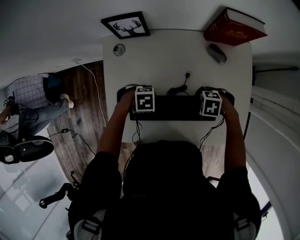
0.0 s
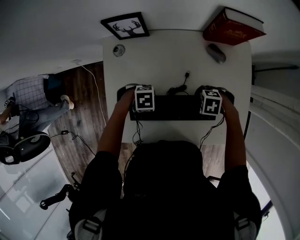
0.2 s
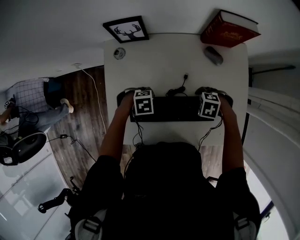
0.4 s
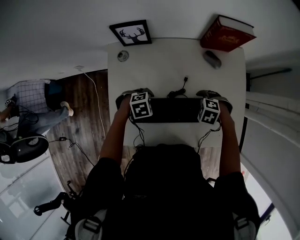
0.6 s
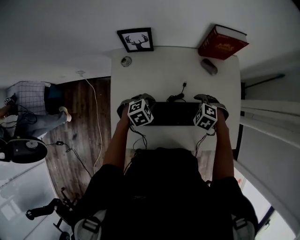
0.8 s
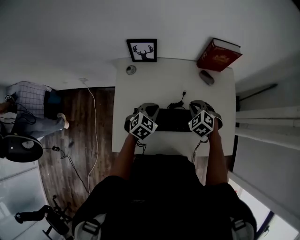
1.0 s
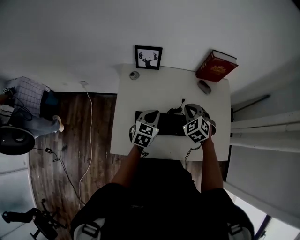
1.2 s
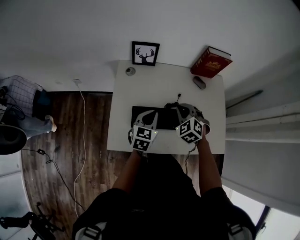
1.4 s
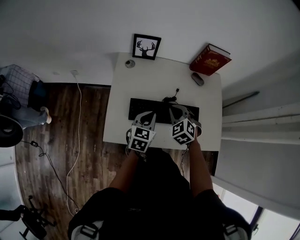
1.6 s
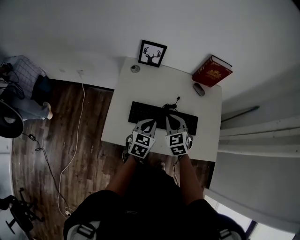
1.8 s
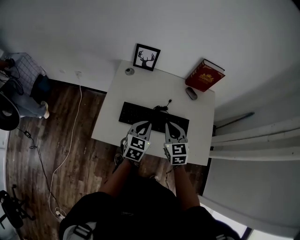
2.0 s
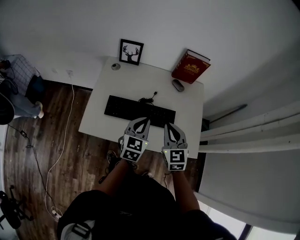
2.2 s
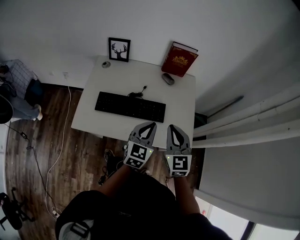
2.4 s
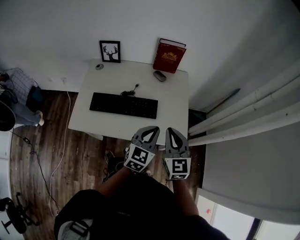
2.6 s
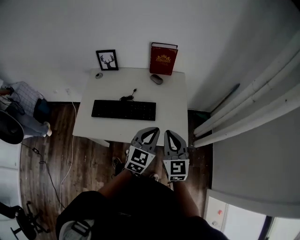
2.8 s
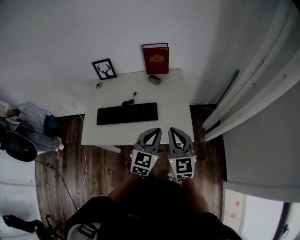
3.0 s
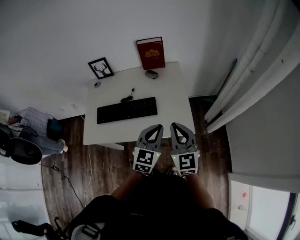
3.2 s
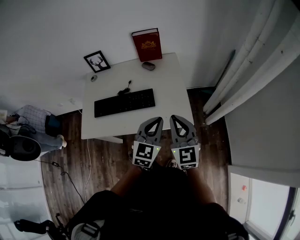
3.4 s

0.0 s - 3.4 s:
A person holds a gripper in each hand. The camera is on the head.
0.0 s - 1.6 s: The grippers both shift upward by about 15 cm. The right gripper changes its angle by approximately 60 degrees, and closes its fingers. Meanwhile the left gripper tips its fingers upward by roughly 40 degrees, and closes up.
1.6 s - 3.4 s: The pair of grippers is taken to the right and backward, roughly 40 cm. The left gripper changes its angle by some 30 degrees. The right gripper is displaced upward by about 15 cm, and angles its fingers upward, by about 40 degrees.

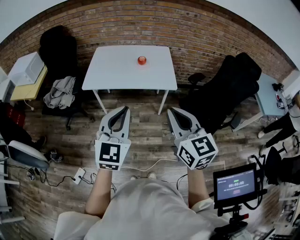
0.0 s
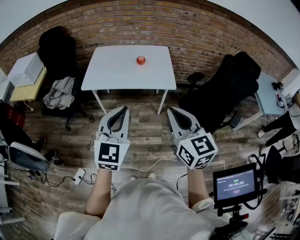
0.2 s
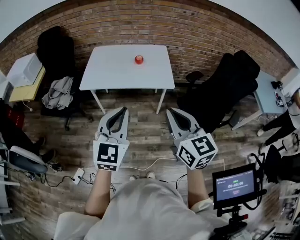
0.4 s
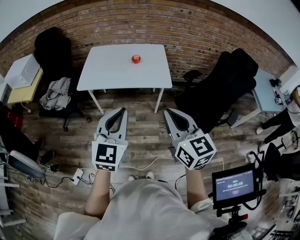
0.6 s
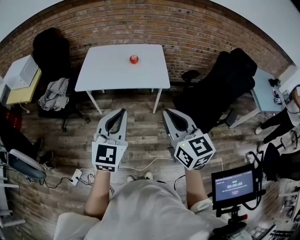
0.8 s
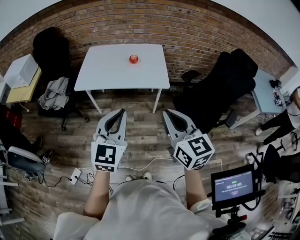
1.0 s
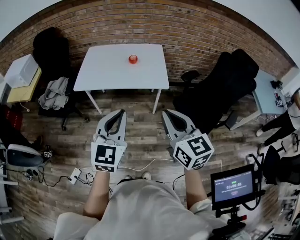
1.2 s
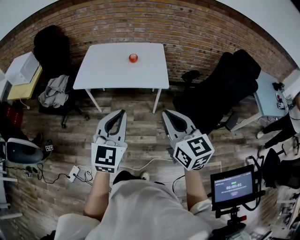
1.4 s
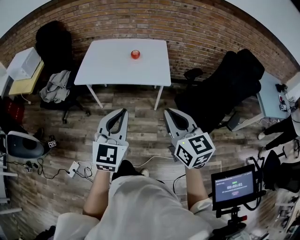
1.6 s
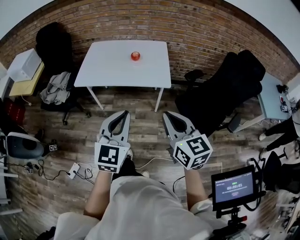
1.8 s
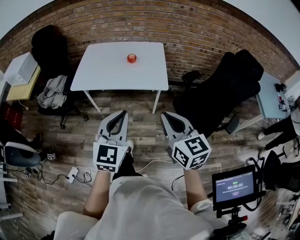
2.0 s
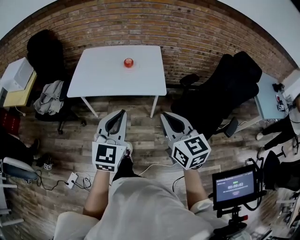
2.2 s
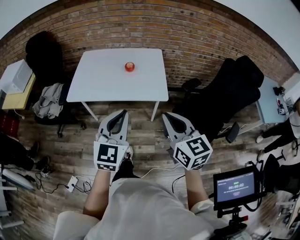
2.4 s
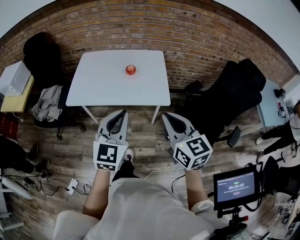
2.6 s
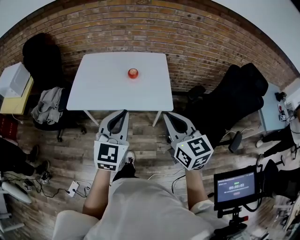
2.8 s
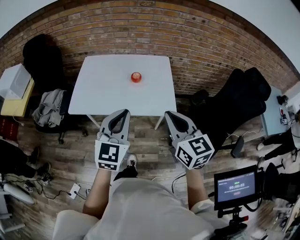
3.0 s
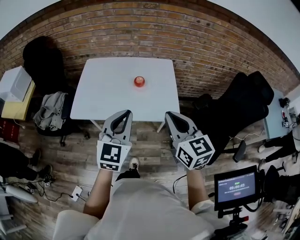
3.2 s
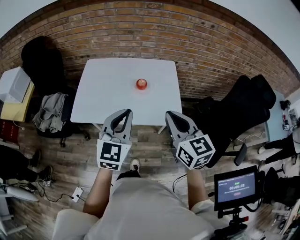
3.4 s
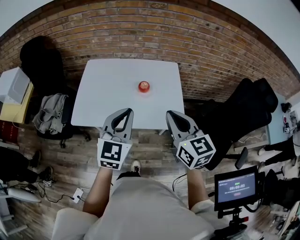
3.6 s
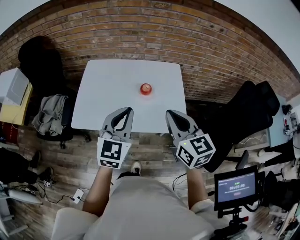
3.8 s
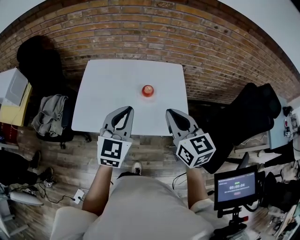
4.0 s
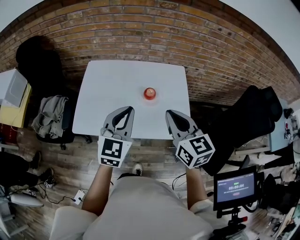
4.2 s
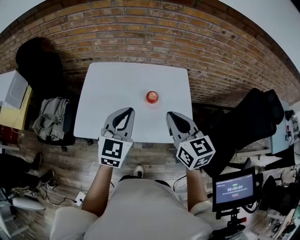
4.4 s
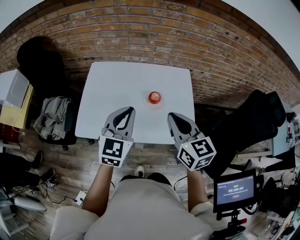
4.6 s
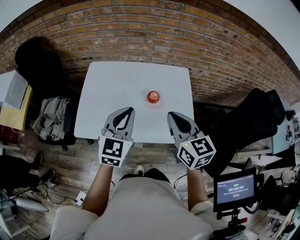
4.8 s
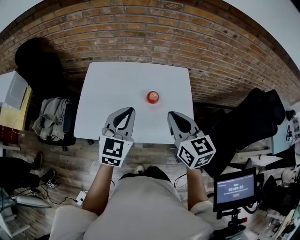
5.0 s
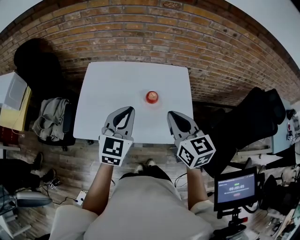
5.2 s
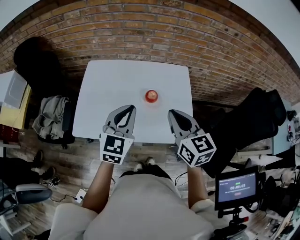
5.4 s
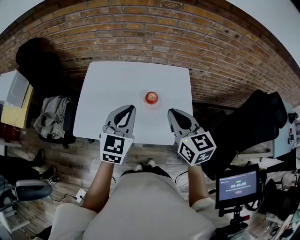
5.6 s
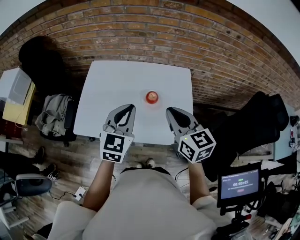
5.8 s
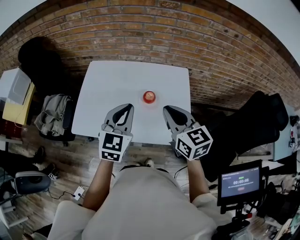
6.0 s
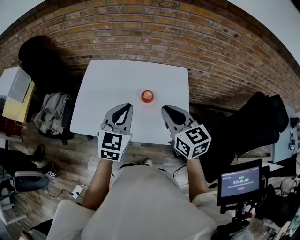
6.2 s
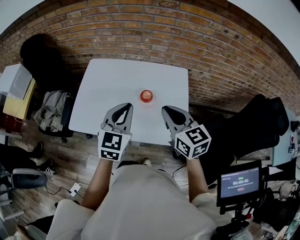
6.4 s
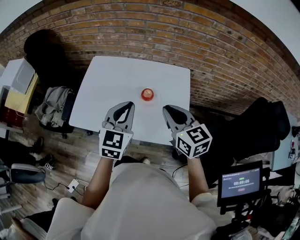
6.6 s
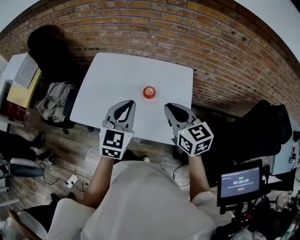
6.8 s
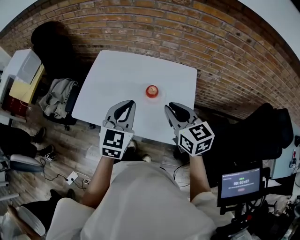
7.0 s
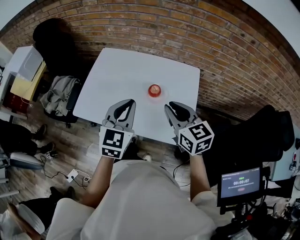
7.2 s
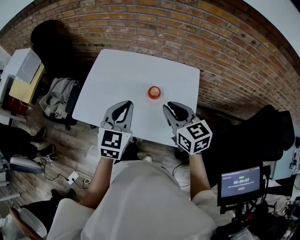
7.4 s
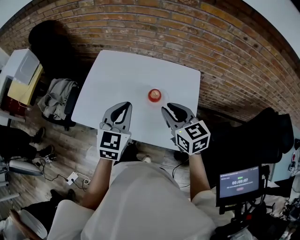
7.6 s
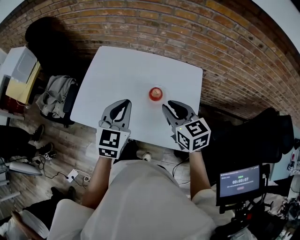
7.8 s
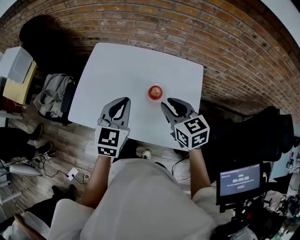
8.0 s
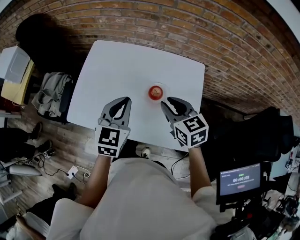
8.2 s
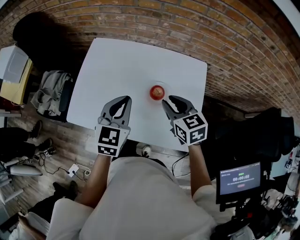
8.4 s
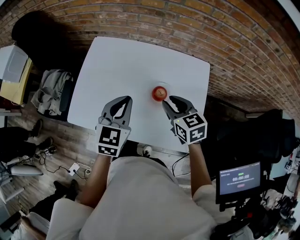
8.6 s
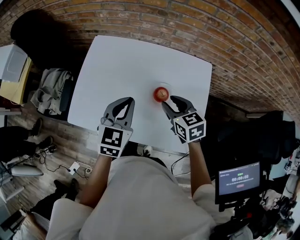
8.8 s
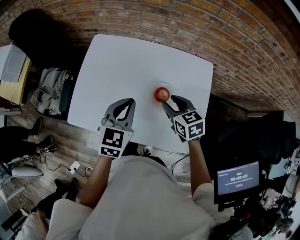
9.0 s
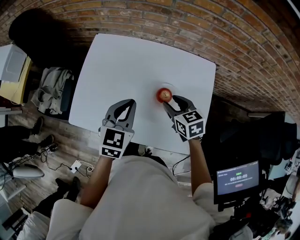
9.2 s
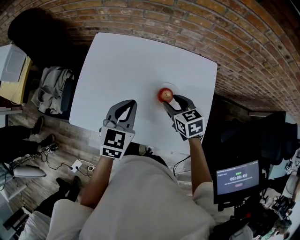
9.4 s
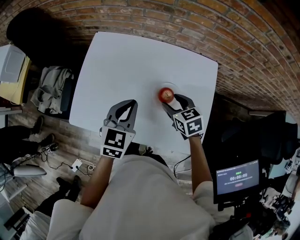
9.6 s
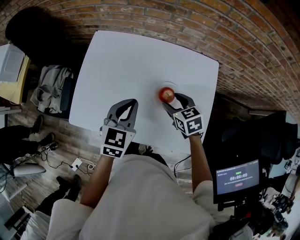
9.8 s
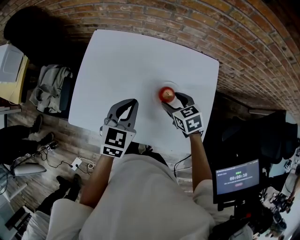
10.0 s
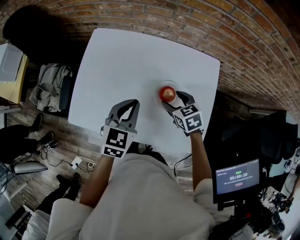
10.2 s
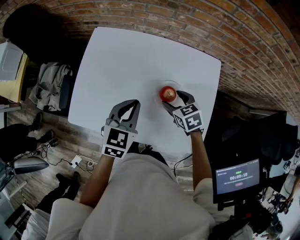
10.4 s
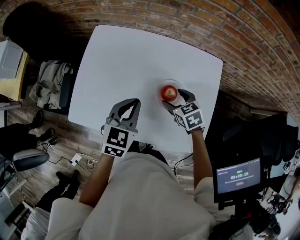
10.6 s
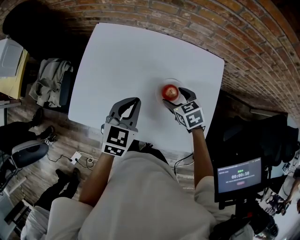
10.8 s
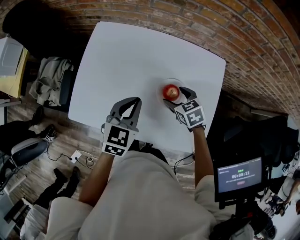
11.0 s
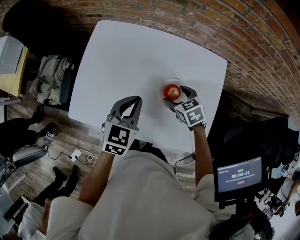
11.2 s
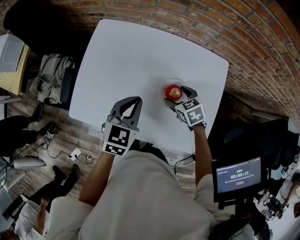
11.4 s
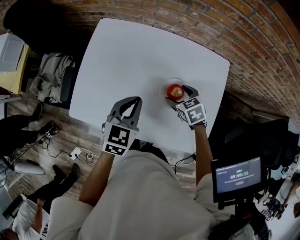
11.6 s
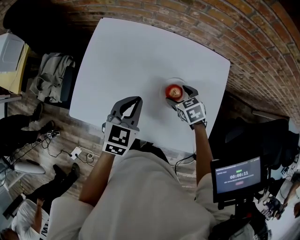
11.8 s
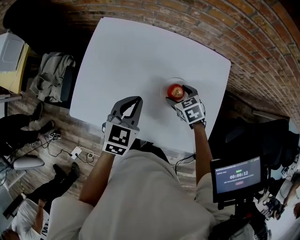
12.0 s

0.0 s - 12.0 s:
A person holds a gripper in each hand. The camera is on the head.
0.0 s - 1.6 s: The two grippers go about 10 cm to the right.
1.6 s - 3.0 s: Both grippers travel together forward, approximately 25 cm.
3.0 s - 4.4 s: The two grippers go roughly 20 cm forward.
4.4 s - 6.0 s: The right gripper heads forward, covering roughly 5 cm. Meanwhile the left gripper ends up approximately 5 cm from where it was.
6.0 s - 7.6 s: The right gripper shifts approximately 5 cm downward.
7.6 s - 9.0 s: The right gripper goes some 15 cm downward and forward; the left gripper is displaced forward and downward by approximately 10 cm.
9.0 s - 10.4 s: The right gripper is displaced downward by some 5 cm, and opens.
10.4 s - 12.0 s: The right gripper travels downward by approximately 5 cm.

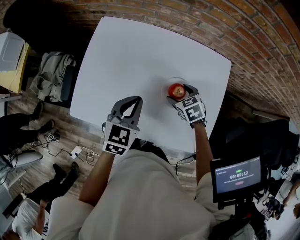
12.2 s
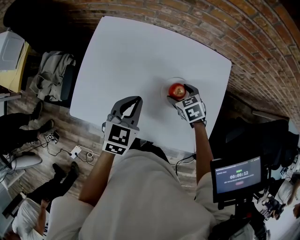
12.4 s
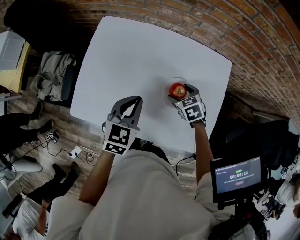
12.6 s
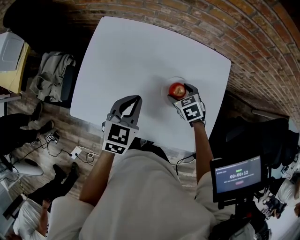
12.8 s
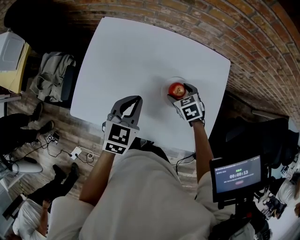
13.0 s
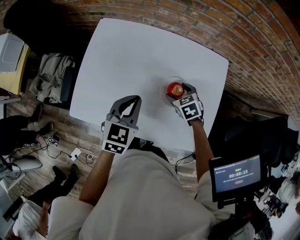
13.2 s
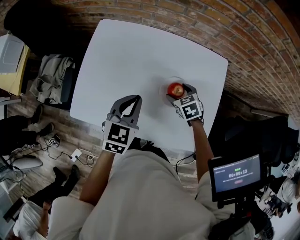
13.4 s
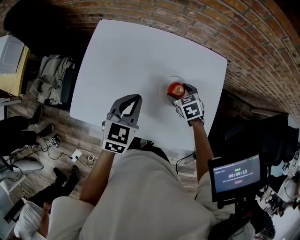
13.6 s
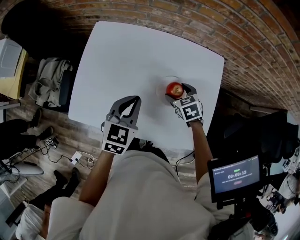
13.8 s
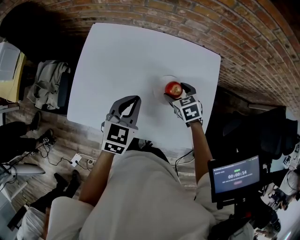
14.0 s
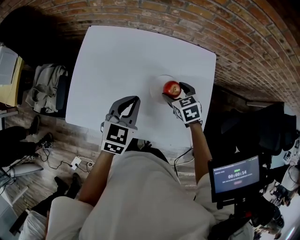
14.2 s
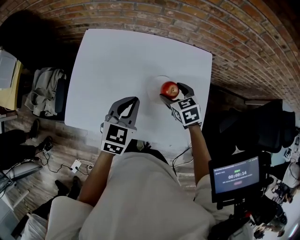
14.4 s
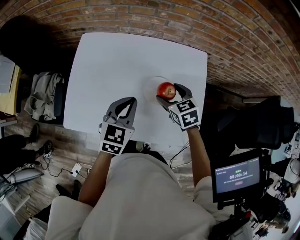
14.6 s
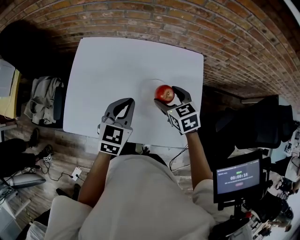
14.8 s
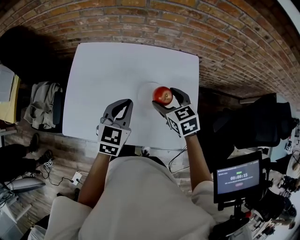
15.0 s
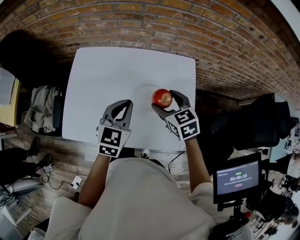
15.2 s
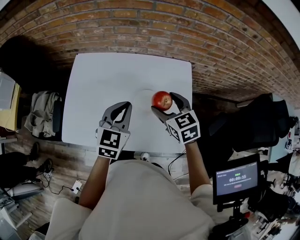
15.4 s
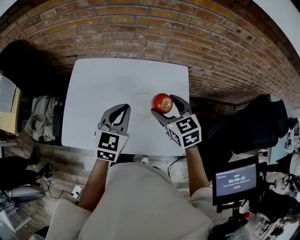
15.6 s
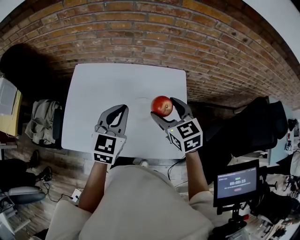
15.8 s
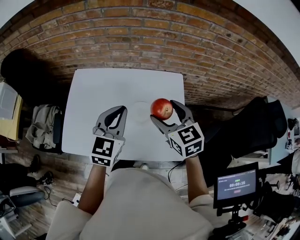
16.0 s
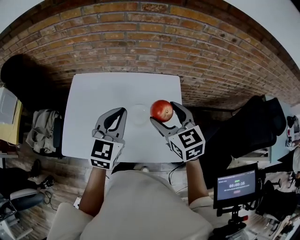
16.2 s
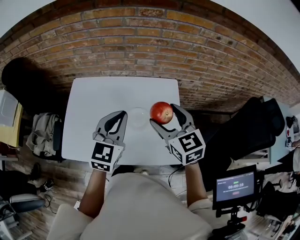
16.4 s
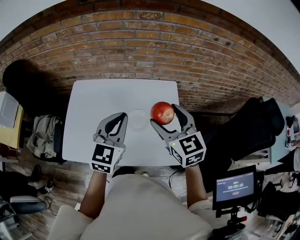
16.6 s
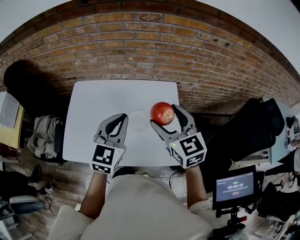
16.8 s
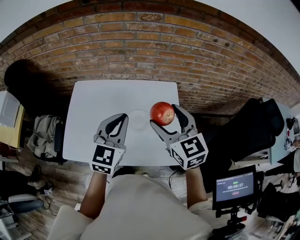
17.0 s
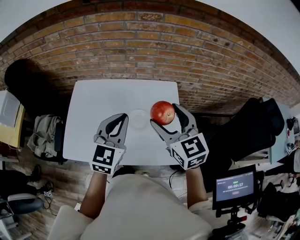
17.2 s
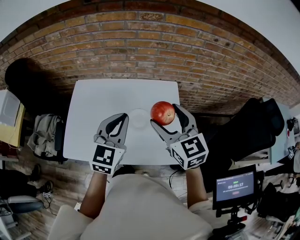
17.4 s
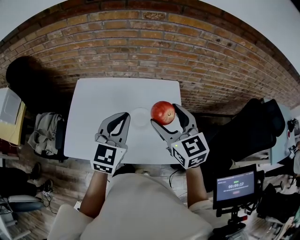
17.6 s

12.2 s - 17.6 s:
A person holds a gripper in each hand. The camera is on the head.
12.2 s - 13.6 s: The grippers make only small movements.
13.6 s - 15.0 s: The right gripper travels upward by about 15 cm. Meanwhile the left gripper moves to the right, approximately 5 cm.
15.0 s - 16.2 s: The two grippers go roughly 15 cm upward.
16.2 s - 17.6 s: The right gripper is displaced upward by roughly 5 cm.

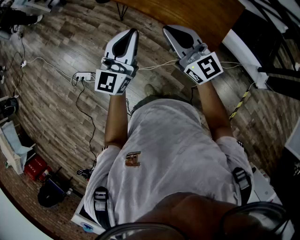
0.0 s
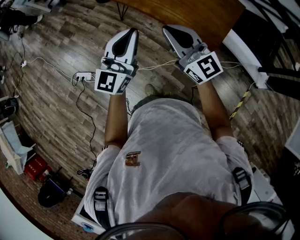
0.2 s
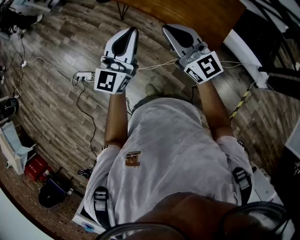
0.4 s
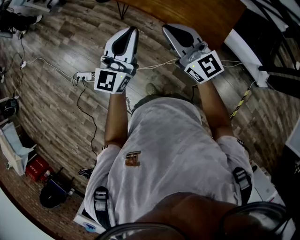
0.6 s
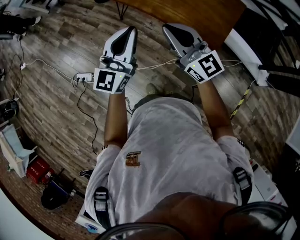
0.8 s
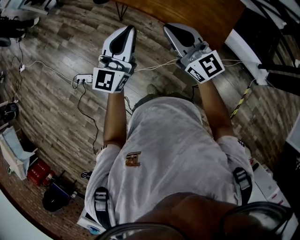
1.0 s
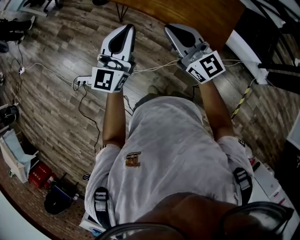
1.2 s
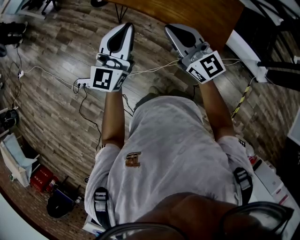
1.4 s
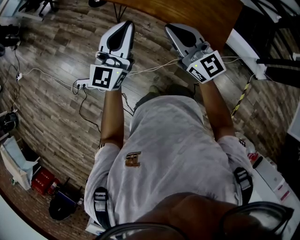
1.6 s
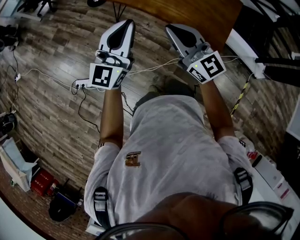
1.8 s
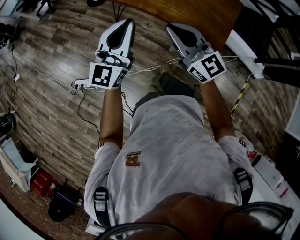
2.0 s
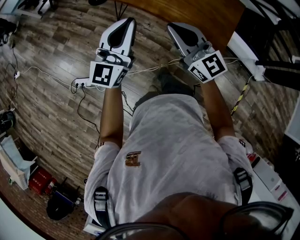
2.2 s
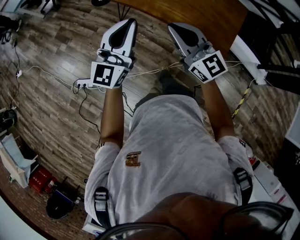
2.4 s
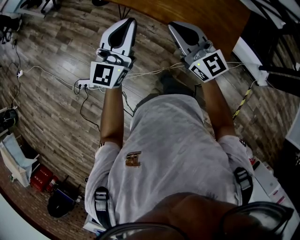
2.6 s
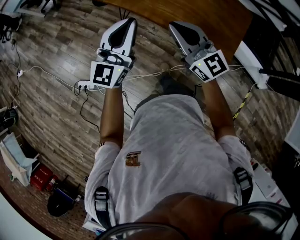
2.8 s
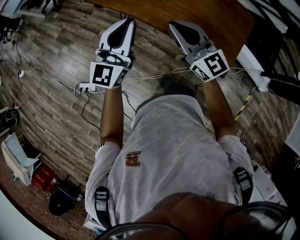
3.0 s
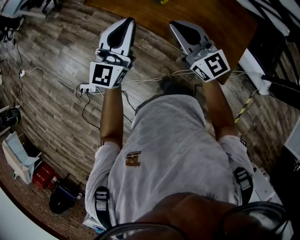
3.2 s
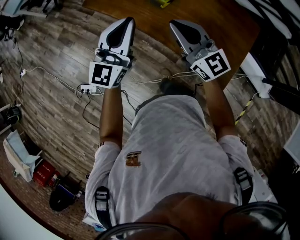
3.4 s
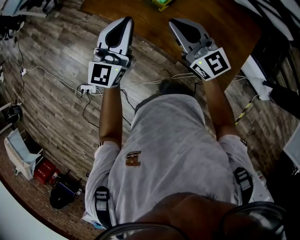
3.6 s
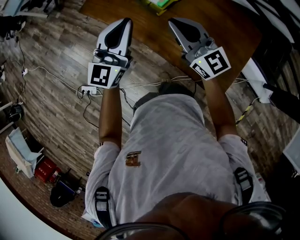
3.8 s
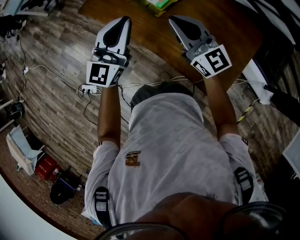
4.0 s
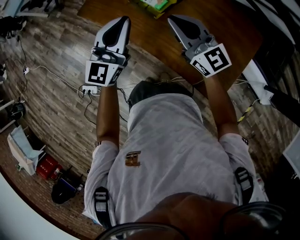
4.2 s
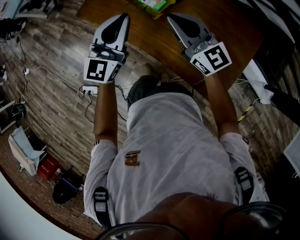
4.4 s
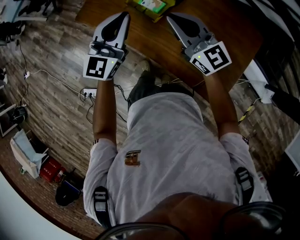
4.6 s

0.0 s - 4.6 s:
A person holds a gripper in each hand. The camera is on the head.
0.0 s - 1.6 s: The left gripper heads to the left and forward, covering roughly 15 cm. The right gripper travels to the left by about 10 cm.
1.6 s - 3.0 s: Both grippers move forward, some 20 cm.
3.0 s - 4.6 s: Both grippers travel together forward and to the right, roughly 35 cm.
